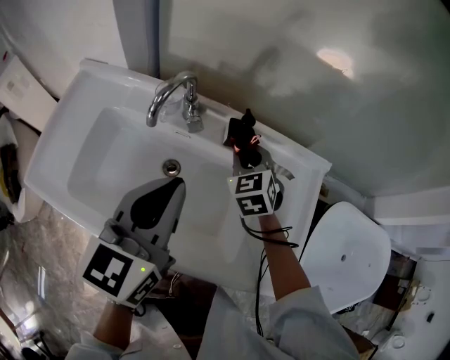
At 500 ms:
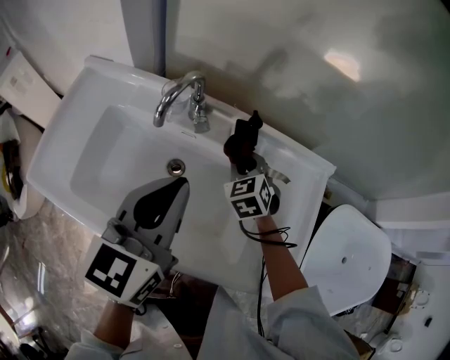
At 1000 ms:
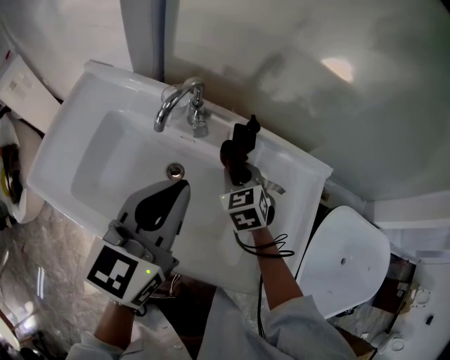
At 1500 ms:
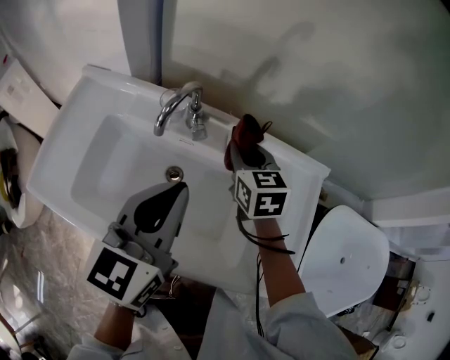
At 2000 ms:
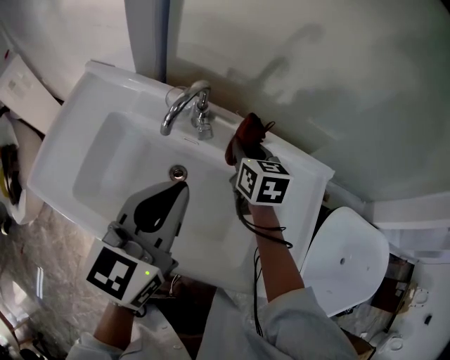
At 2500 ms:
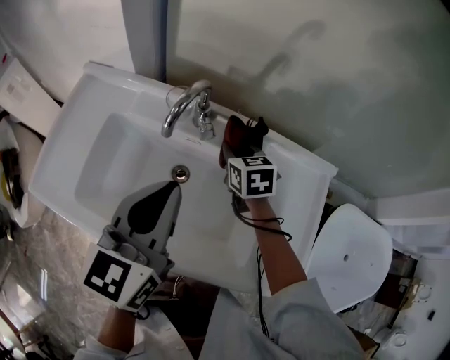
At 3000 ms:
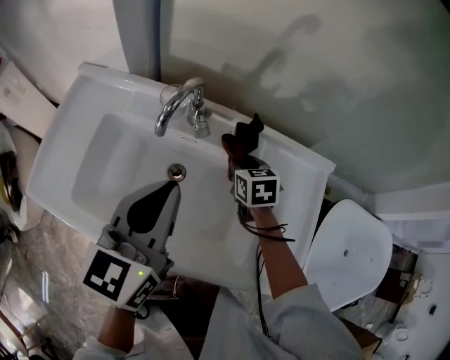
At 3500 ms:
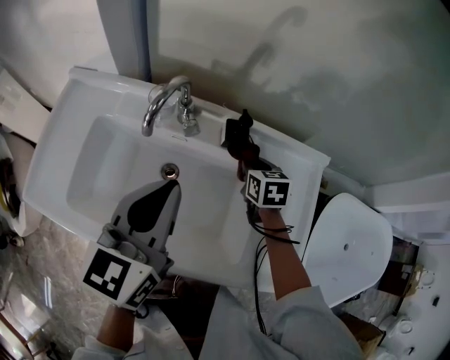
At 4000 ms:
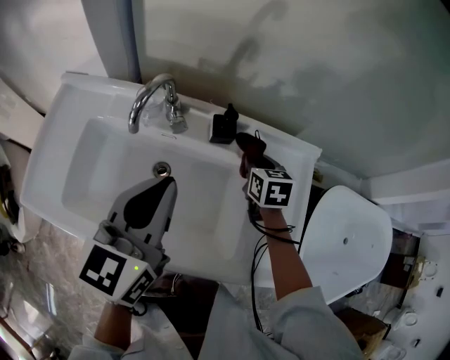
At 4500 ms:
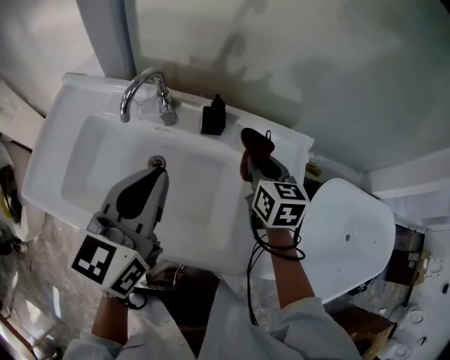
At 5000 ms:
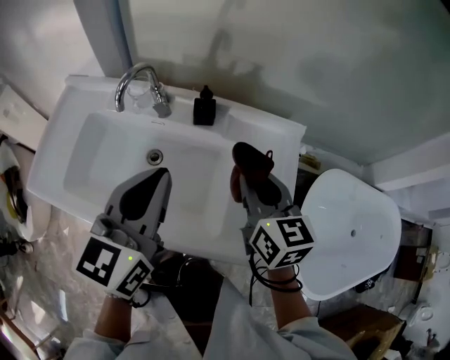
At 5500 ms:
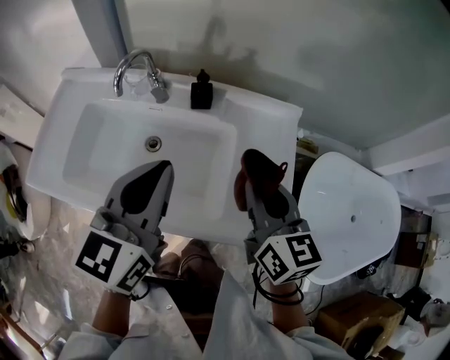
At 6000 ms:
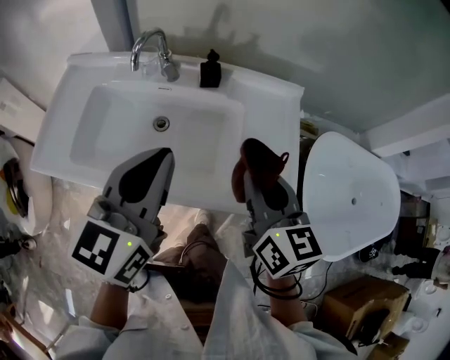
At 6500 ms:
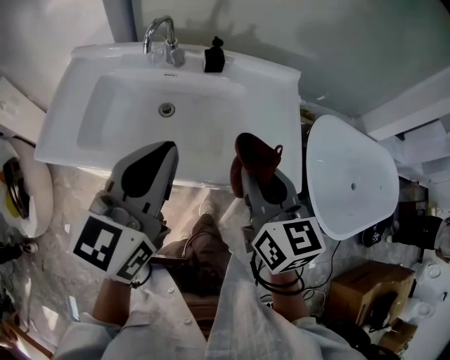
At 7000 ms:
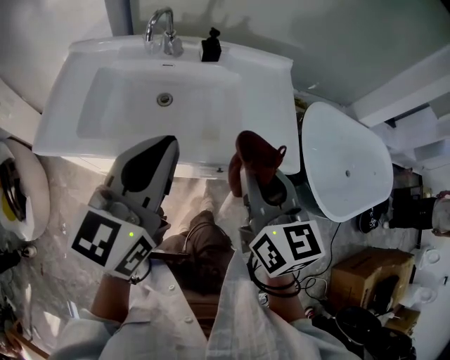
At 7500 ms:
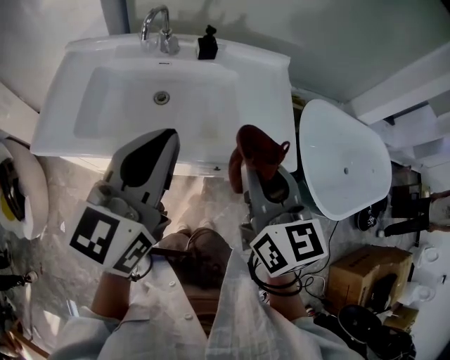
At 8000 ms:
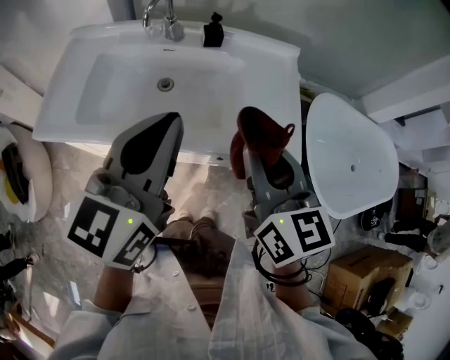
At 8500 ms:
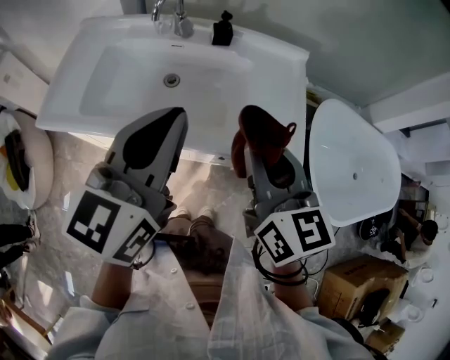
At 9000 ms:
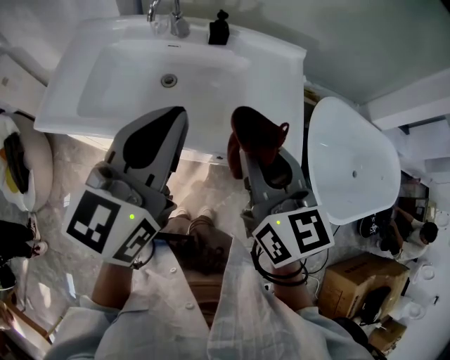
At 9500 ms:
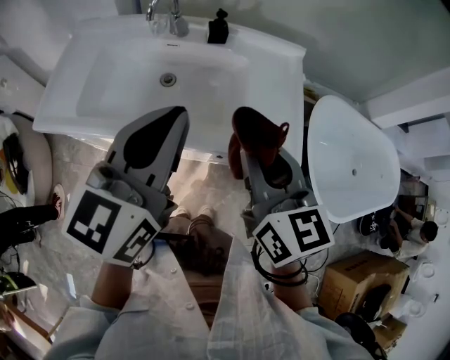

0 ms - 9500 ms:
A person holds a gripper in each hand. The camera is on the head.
0 ms - 2000 ms: The right gripper travels upward and back again, approximately 5 cm each way, and swivels about 40 degrees.
2000 ms - 4000 ms: The right gripper travels to the right and downward by about 15 cm.
4000 ms - 5500 ms: The right gripper goes approximately 30 cm backward and upward, and rotates approximately 30 degrees. Meanwhile the left gripper is displaced backward and to the right by about 10 cm.
5500 ms - 7500 ms: The two grippers go about 20 cm backward.
7500 ms - 9500 ms: The grippers stay close to where they were, moving slightly.

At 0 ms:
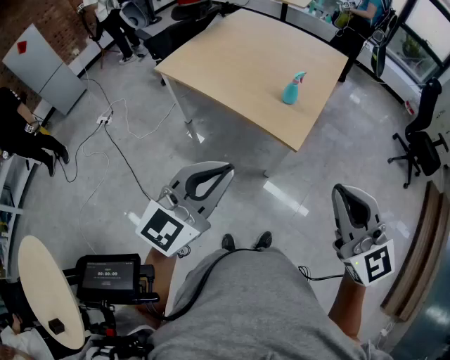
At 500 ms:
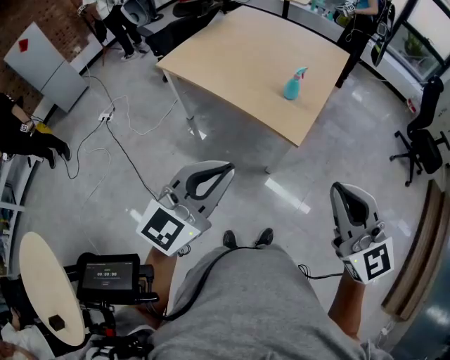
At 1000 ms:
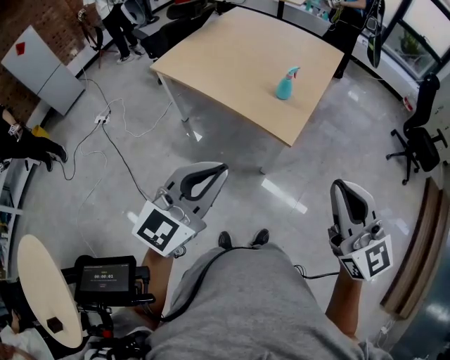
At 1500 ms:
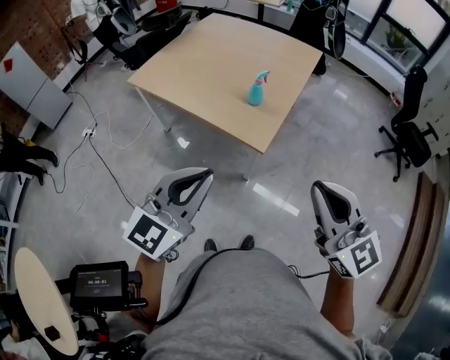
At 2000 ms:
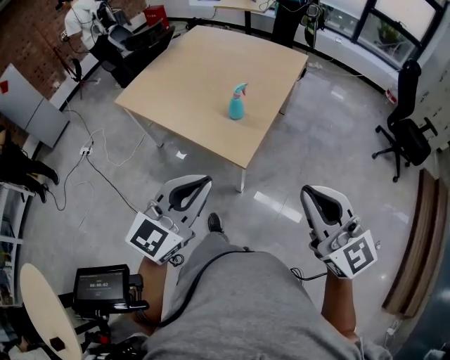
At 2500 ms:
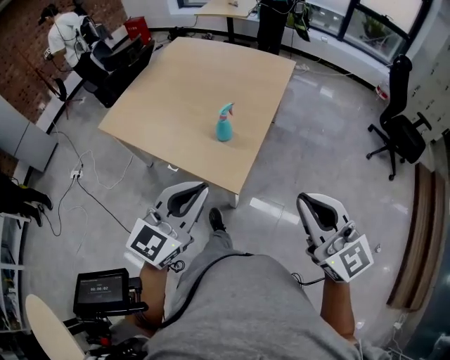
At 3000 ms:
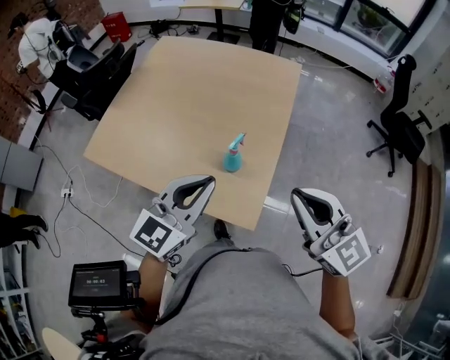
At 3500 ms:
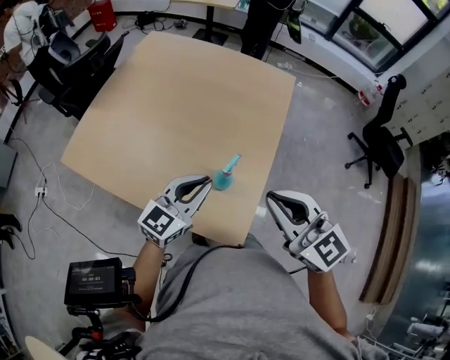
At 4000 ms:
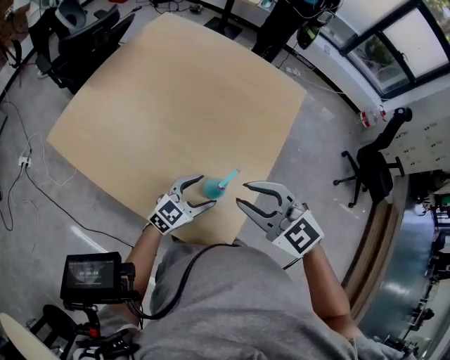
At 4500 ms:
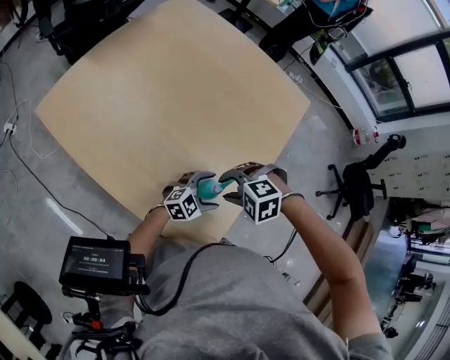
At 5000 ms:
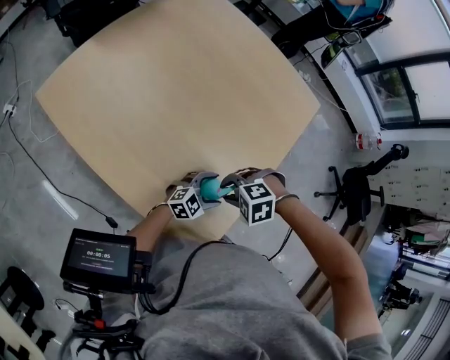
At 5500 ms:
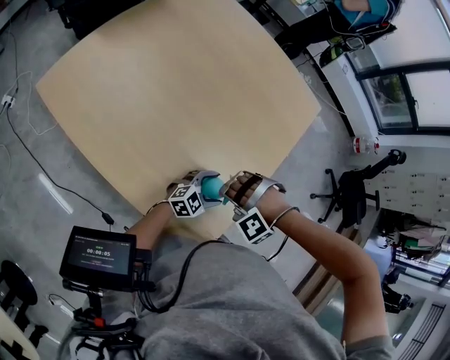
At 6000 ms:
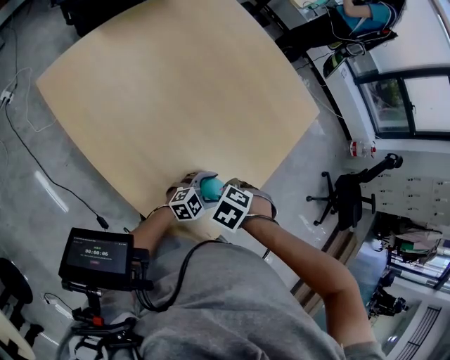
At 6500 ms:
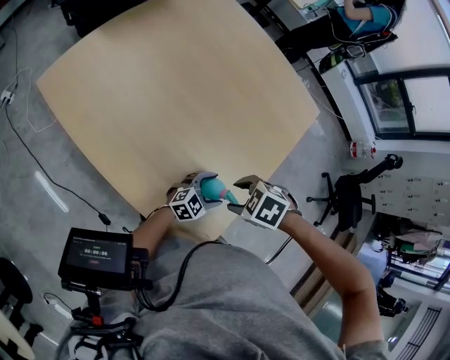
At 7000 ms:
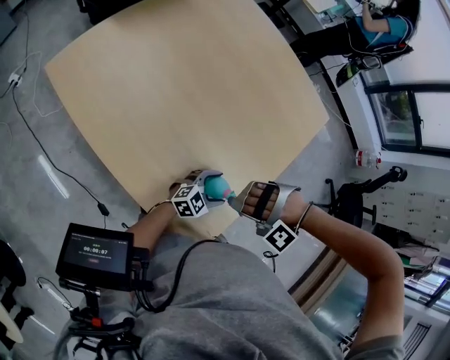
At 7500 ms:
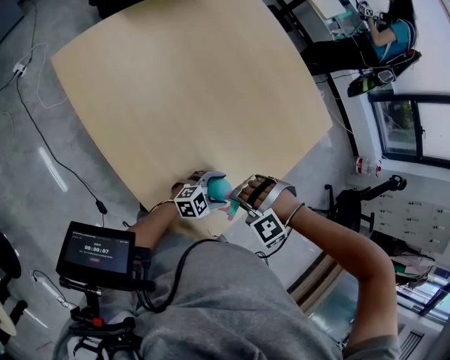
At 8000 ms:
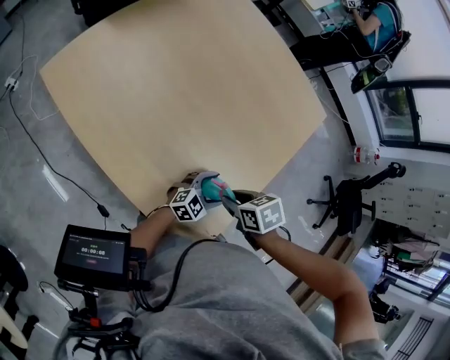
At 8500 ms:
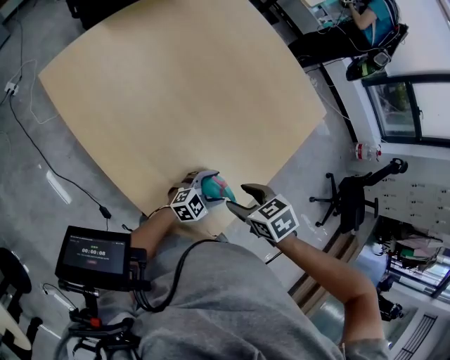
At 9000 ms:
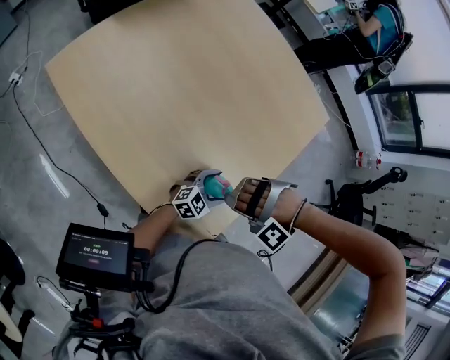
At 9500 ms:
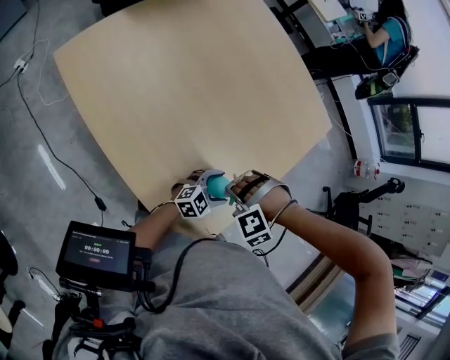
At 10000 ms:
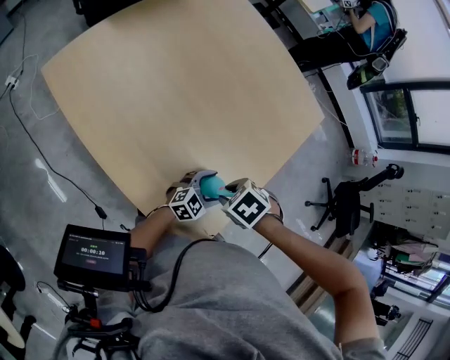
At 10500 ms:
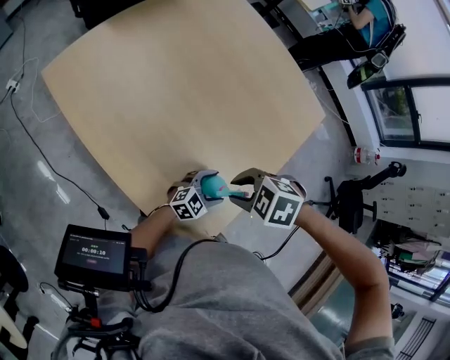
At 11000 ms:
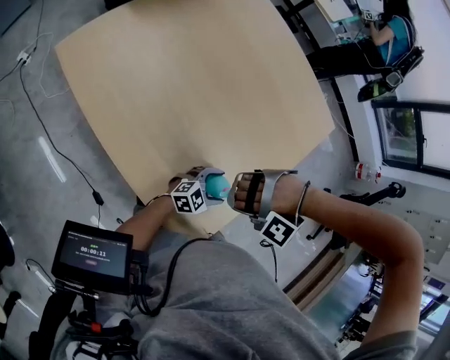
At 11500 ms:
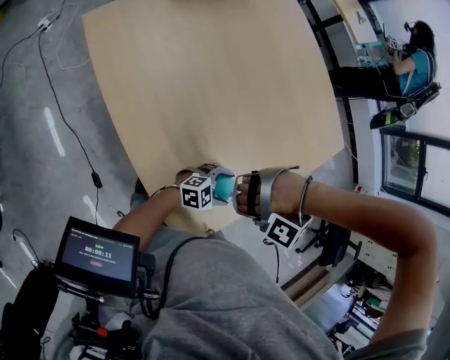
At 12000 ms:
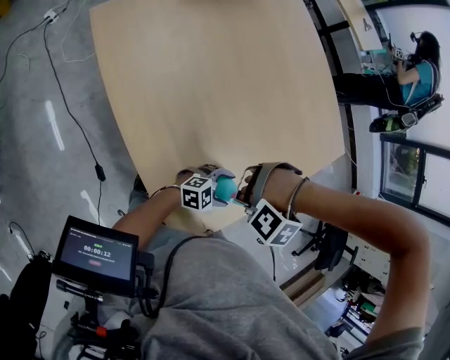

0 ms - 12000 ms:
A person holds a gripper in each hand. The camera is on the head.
0 ms - 2000 ms: Both grippers travel together to the right and forward, some 20 cm.
2000 ms - 4000 ms: Both grippers are carried forward, about 50 cm. The right gripper tilts its fingers roughly 30 degrees downward, while the left gripper goes approximately 30 cm downward, turns by roughly 30 degrees, and opens up.
4000 ms - 6000 ms: The left gripper moves downward, about 15 cm, while the right gripper travels downward by some 25 cm, and points its fingers some 50 degrees further downward.
6000 ms - 8000 ms: The right gripper rolls clockwise, seen from behind, by approximately 40 degrees, and opens, then closes again.
8000 ms - 10000 ms: The right gripper turns by about 40 degrees, and opens, then closes once more.
10000 ms - 12000 ms: The right gripper rotates around the line of its fingers by roughly 120 degrees, counterclockwise from behind.

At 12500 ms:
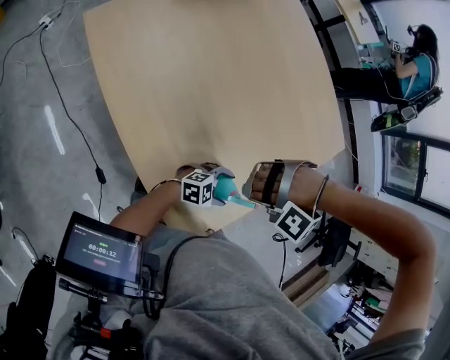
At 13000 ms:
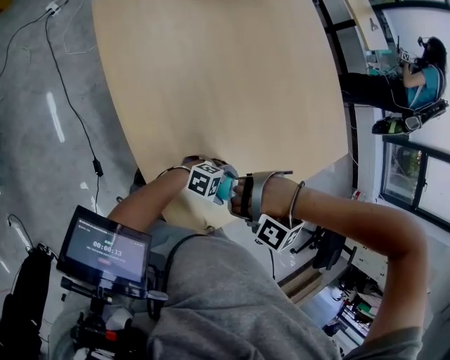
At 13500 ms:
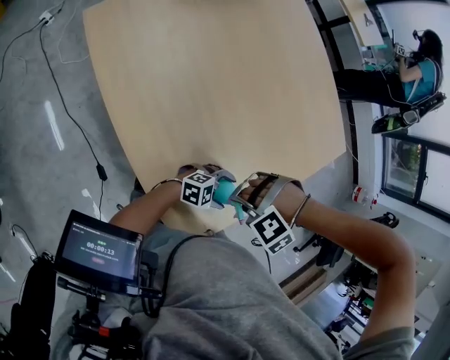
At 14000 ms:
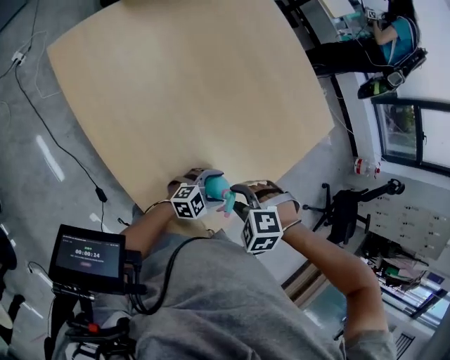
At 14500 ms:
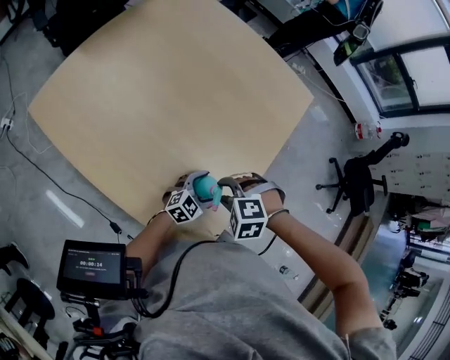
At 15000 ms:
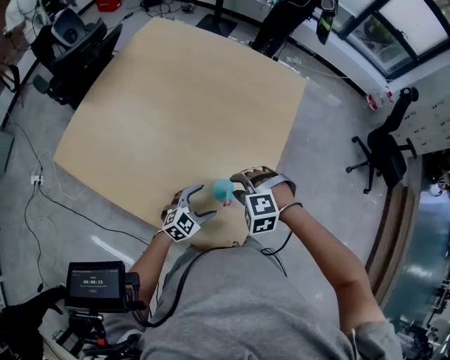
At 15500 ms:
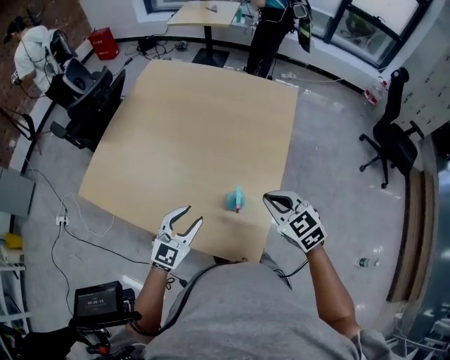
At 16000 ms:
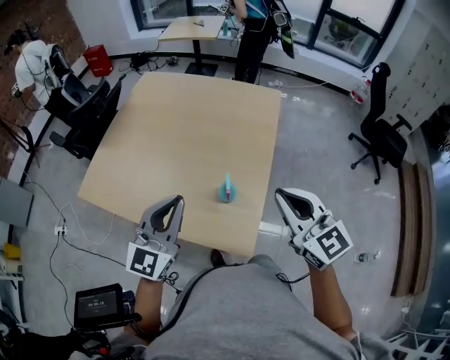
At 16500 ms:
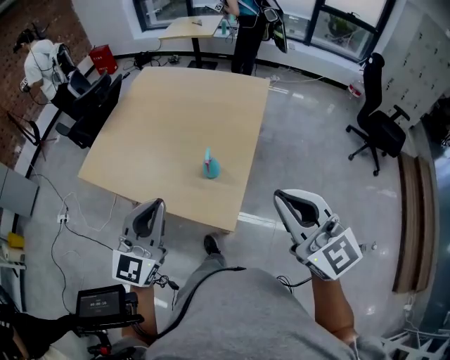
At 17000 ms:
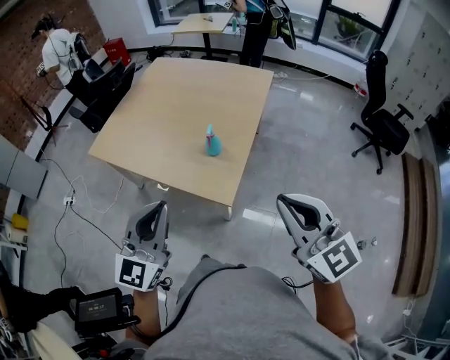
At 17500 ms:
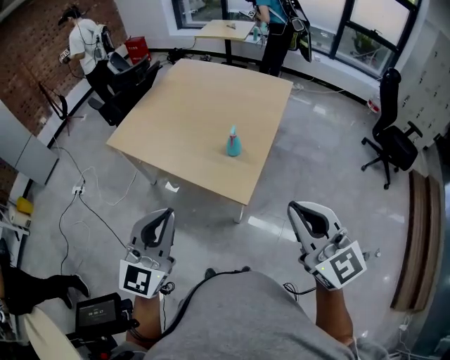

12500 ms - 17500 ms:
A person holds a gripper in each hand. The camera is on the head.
12500 ms - 15000 ms: The right gripper twists approximately 100 degrees clockwise, seen from behind; the left gripper moves some 5 cm.
15000 ms - 17500 ms: The two grippers travel together, backward, approximately 50 cm. The two grippers go approximately 40 cm upward. The right gripper tilts its fingers some 70 degrees upward, and closes up. The left gripper angles its fingers upward, by about 40 degrees, and closes up.
